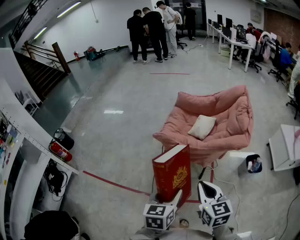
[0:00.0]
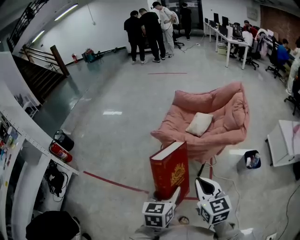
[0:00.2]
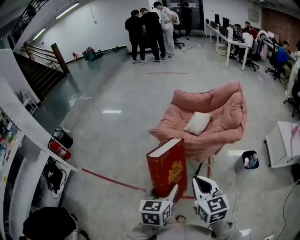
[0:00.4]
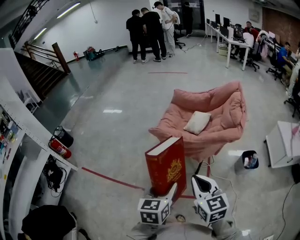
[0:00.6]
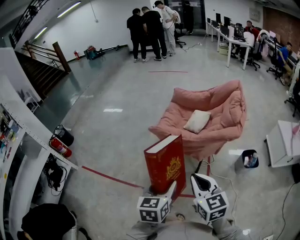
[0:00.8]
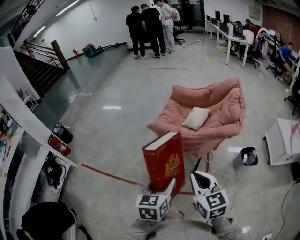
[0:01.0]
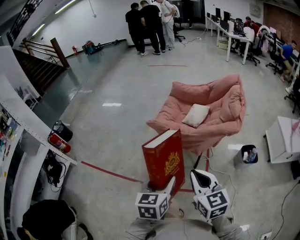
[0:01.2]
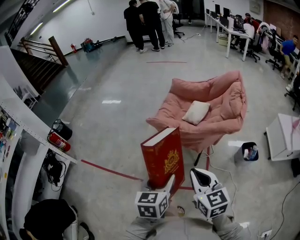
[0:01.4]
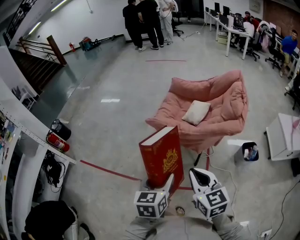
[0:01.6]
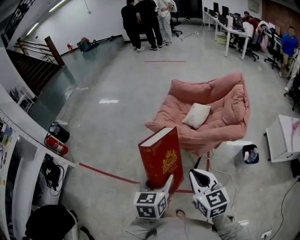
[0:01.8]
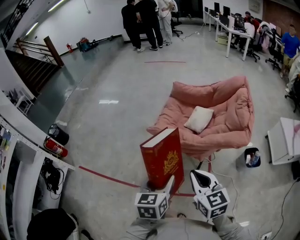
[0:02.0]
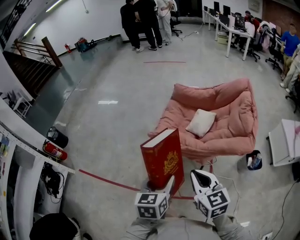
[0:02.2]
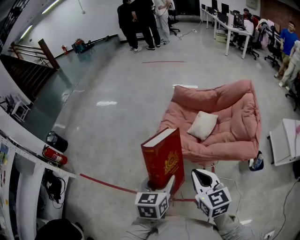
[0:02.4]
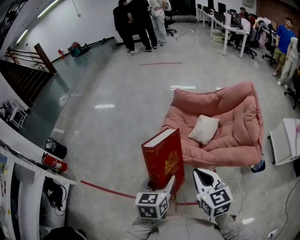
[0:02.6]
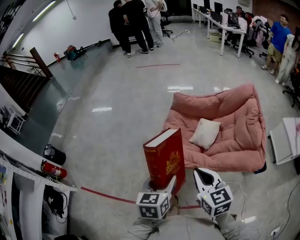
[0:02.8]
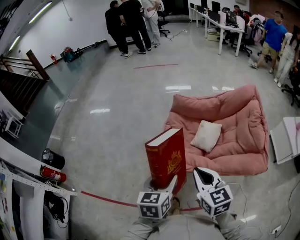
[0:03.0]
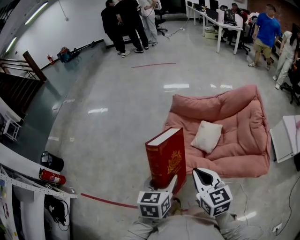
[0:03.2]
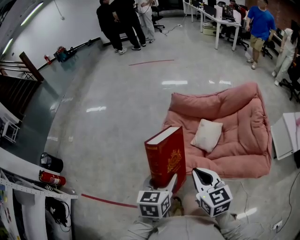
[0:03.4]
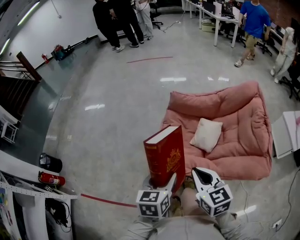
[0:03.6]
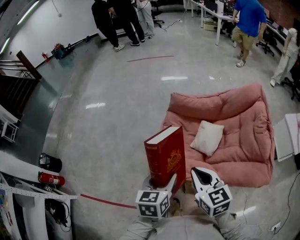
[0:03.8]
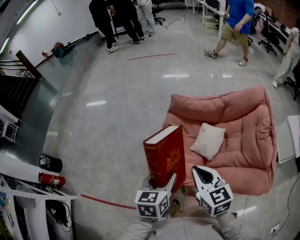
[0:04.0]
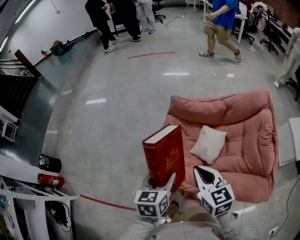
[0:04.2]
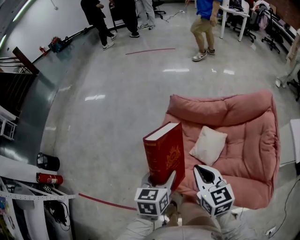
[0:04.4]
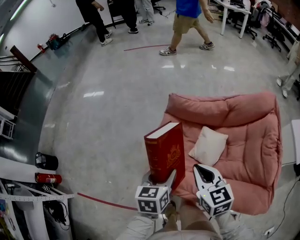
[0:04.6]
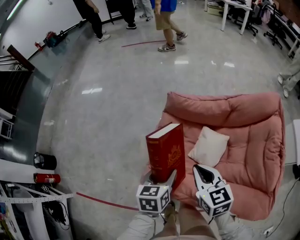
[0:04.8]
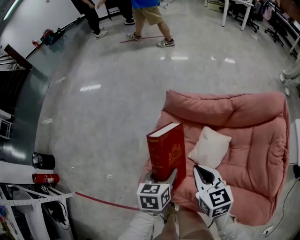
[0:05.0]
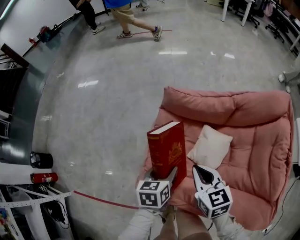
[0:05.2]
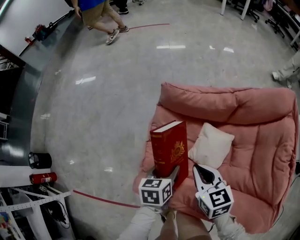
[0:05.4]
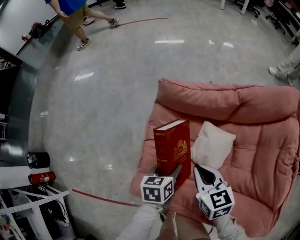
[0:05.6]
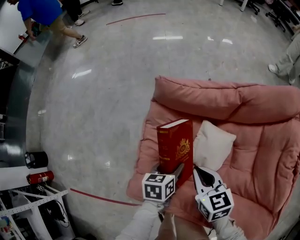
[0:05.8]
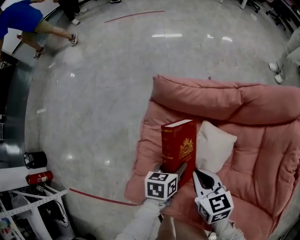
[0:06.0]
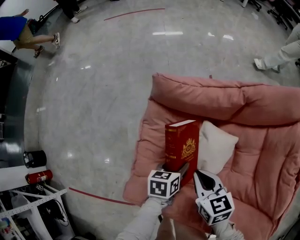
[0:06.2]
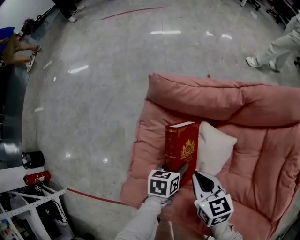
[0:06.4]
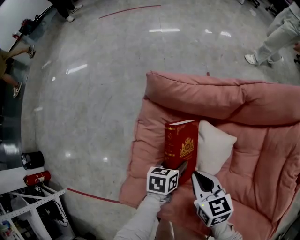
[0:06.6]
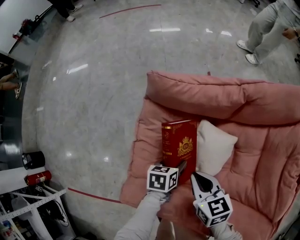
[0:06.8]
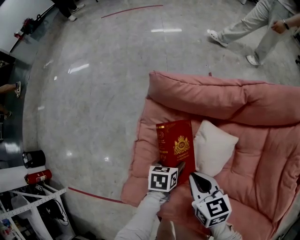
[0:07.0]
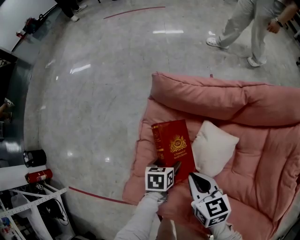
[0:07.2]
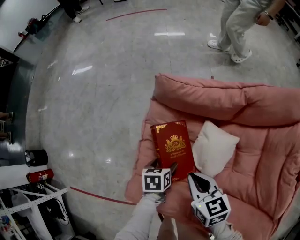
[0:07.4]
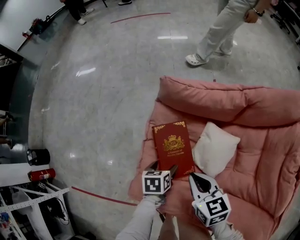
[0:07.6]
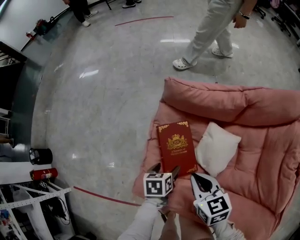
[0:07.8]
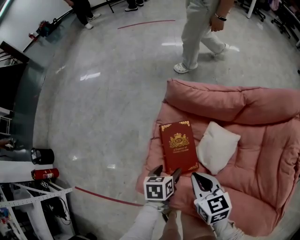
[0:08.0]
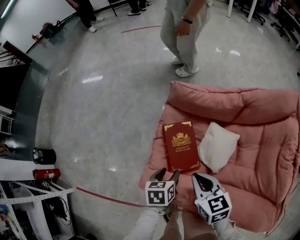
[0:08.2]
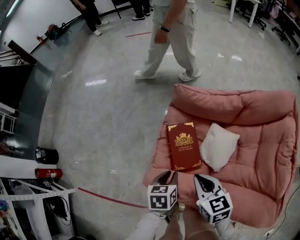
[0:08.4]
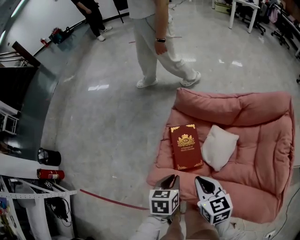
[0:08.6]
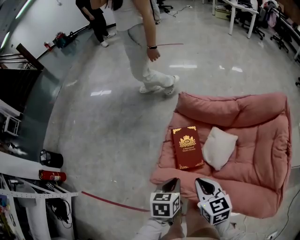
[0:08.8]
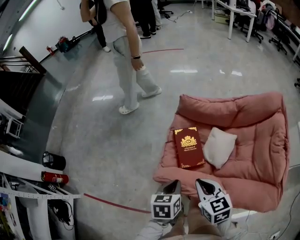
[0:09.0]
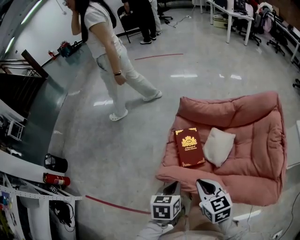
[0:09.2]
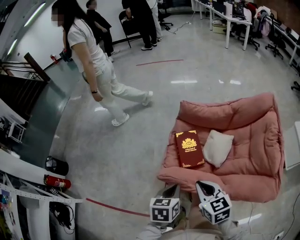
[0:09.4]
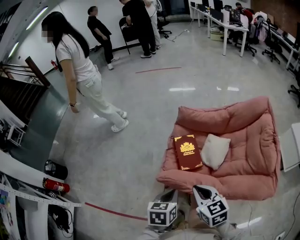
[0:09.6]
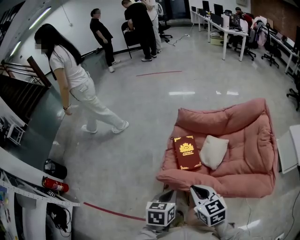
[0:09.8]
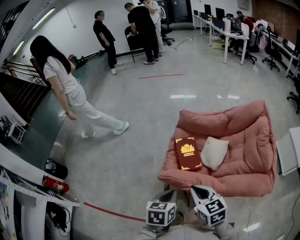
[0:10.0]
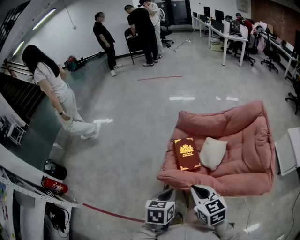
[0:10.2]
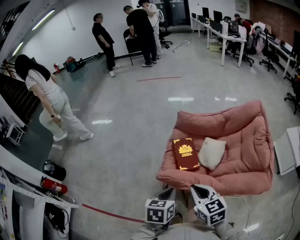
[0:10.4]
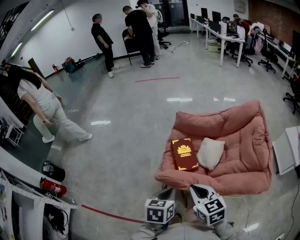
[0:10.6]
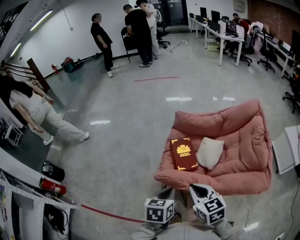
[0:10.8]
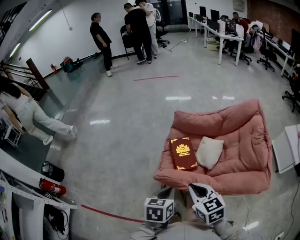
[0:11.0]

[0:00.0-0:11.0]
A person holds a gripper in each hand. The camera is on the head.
0:00.0 to 0:01.6: The grippers make only small movements.
0:01.6 to 0:03.2: Both grippers move forward, some 30 cm.
0:03.2 to 0:04.8: The left gripper goes approximately 25 cm forward and downward. Meanwhile the right gripper shifts about 20 cm forward.
0:04.8 to 0:06.2: The left gripper travels downward, to the right and forward by some 25 cm, and turns by some 20 degrees. The right gripper shifts roughly 15 cm downward.
0:06.2 to 0:07.8: The left gripper moves to the left, some 10 cm. The right gripper changes place by some 5 cm.
0:07.8 to 0:09.4: The right gripper moves backward and upward, about 20 cm; the left gripper goes approximately 30 cm upward and backward, and closes up.
0:09.4 to 0:11.0: The grippers both shift backward by approximately 5 cm.

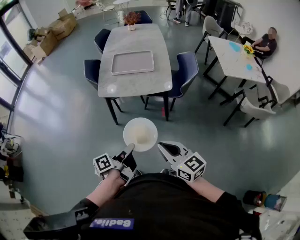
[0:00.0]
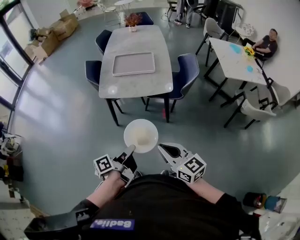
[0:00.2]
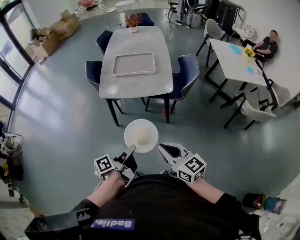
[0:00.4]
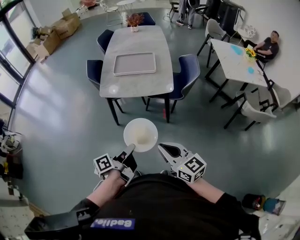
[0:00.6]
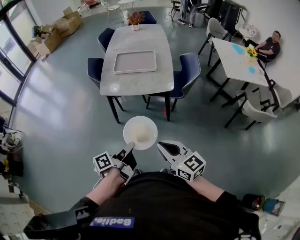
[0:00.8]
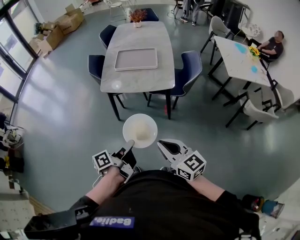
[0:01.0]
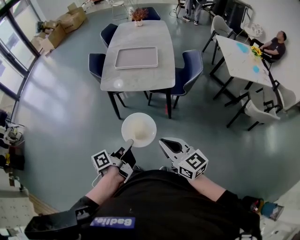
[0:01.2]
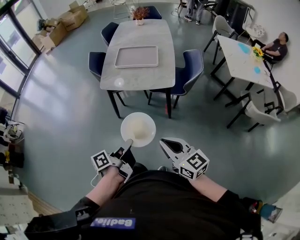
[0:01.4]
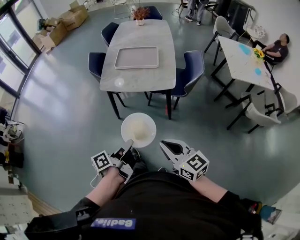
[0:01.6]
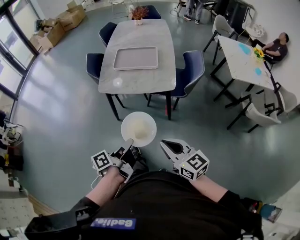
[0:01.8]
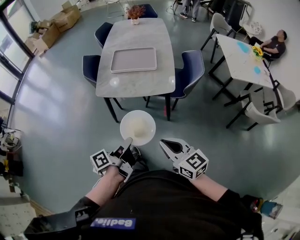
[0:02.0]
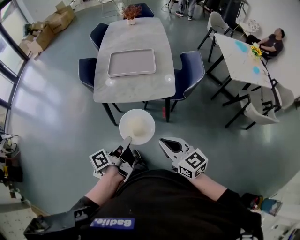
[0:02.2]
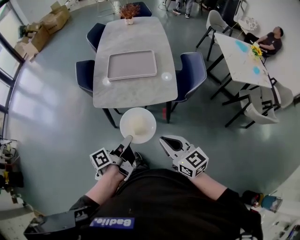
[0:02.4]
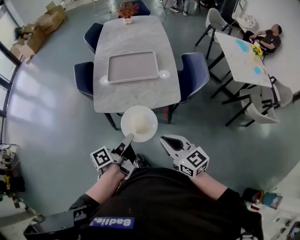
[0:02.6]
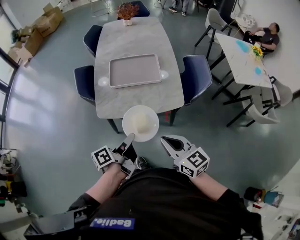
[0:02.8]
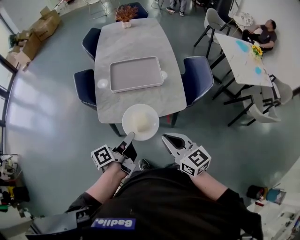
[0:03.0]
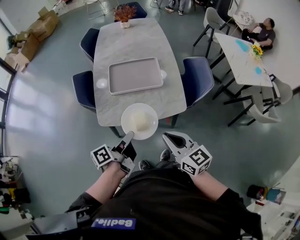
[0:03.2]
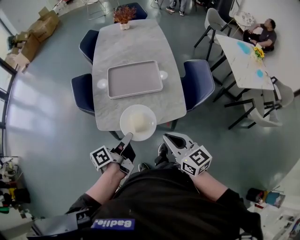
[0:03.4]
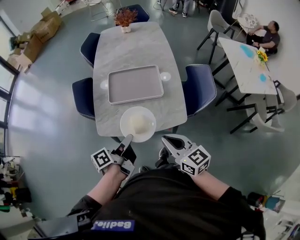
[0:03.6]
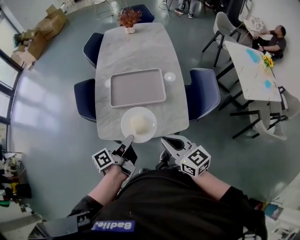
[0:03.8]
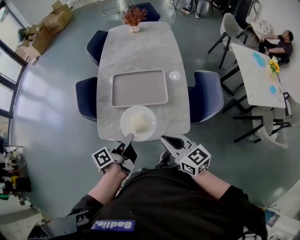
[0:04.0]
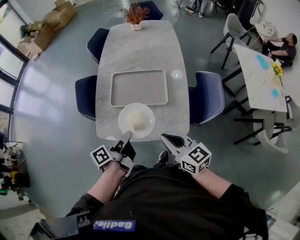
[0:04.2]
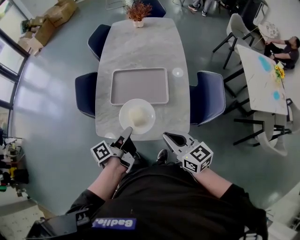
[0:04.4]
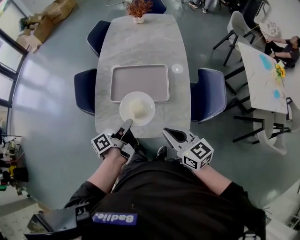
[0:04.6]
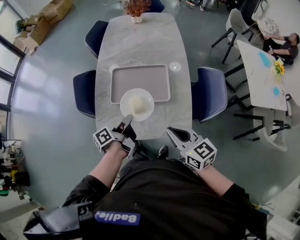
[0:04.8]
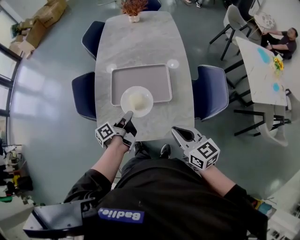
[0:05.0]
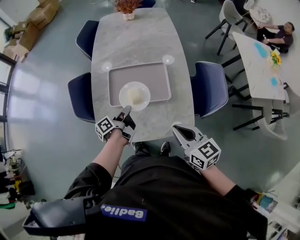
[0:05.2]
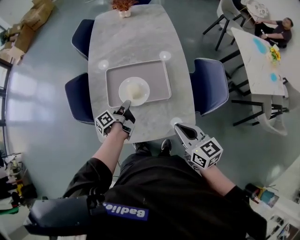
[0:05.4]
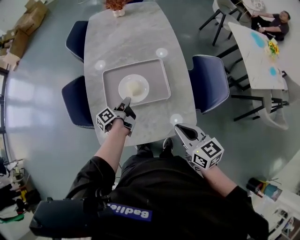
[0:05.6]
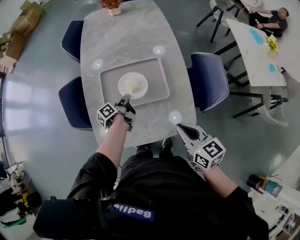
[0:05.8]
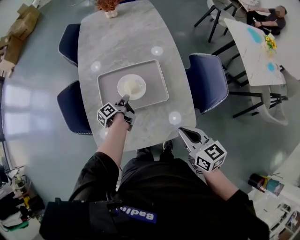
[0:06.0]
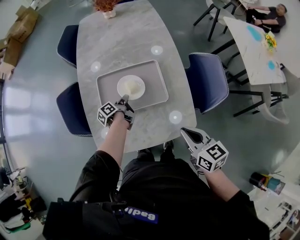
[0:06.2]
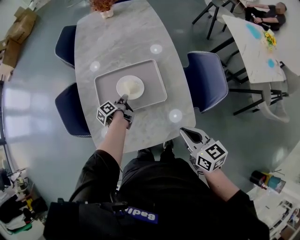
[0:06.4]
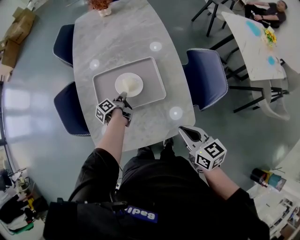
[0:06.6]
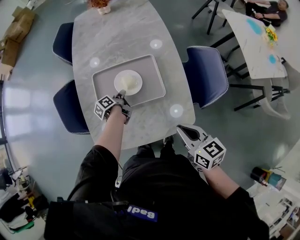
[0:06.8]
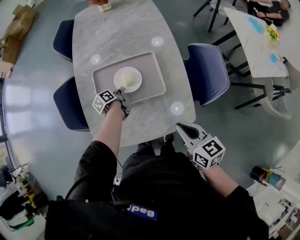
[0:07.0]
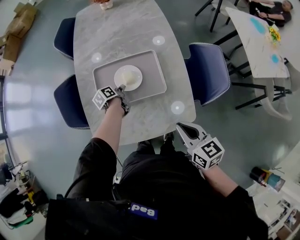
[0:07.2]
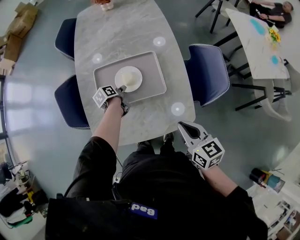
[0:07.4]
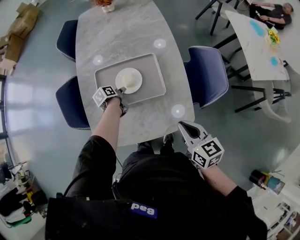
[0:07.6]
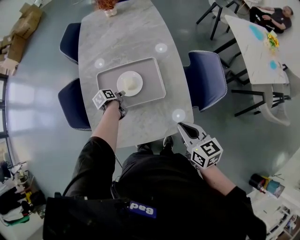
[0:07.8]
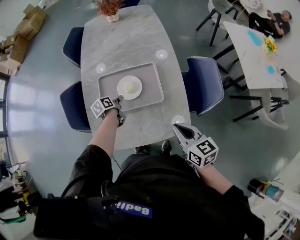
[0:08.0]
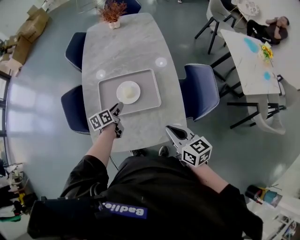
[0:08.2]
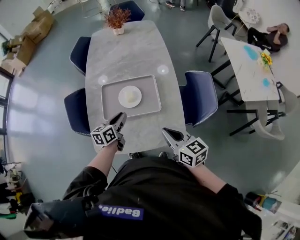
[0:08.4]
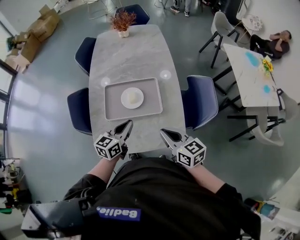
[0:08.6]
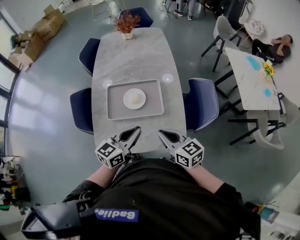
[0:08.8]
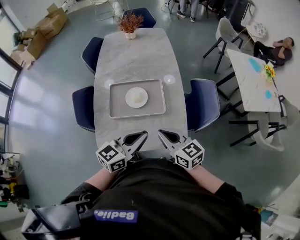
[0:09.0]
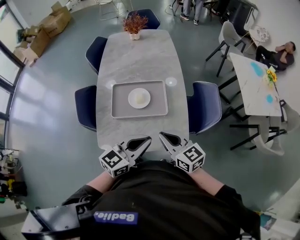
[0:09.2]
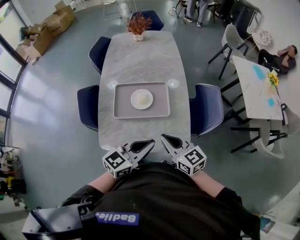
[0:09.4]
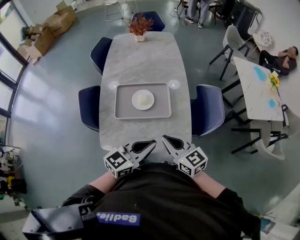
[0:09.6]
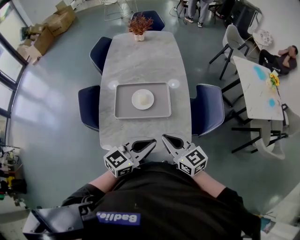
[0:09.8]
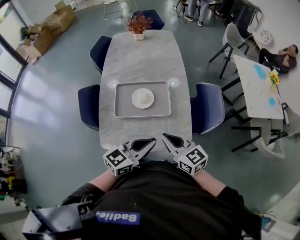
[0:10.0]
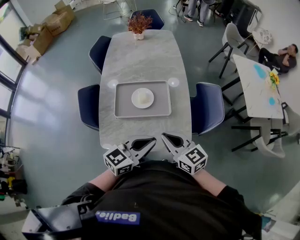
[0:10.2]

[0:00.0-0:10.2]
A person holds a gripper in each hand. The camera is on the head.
0:01.4 to 0:03.0: The right gripper shifts by approximately 30 cm.
0:03.0 to 0:04.4: The right gripper ends up roughly 20 cm from where it was.
0:04.4 to 0:05.8: The right gripper ends up about 5 cm from where it was, and turns by approximately 20 degrees.
0:07.2 to 0:08.8: The right gripper goes approximately 5 cm upward.

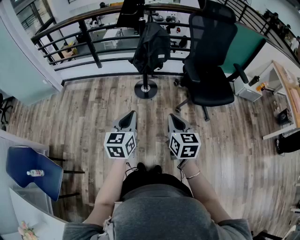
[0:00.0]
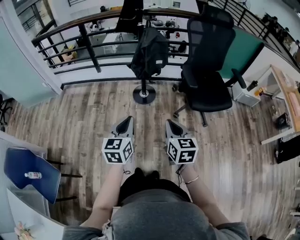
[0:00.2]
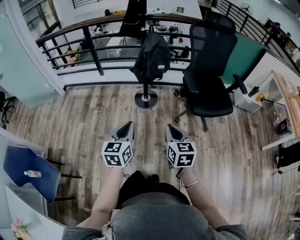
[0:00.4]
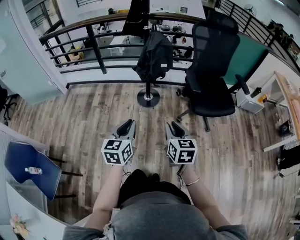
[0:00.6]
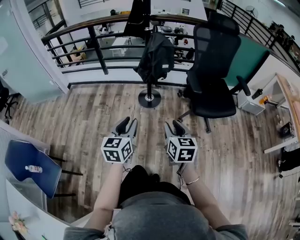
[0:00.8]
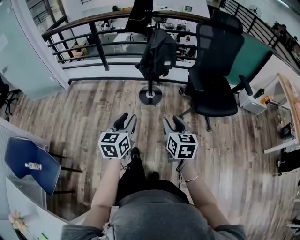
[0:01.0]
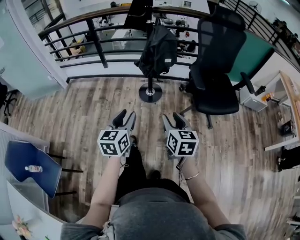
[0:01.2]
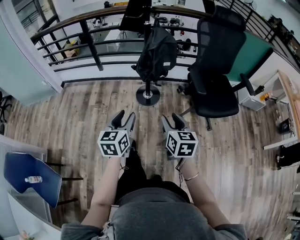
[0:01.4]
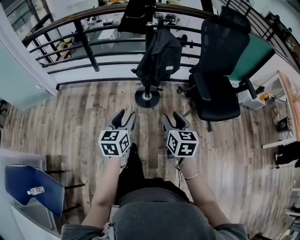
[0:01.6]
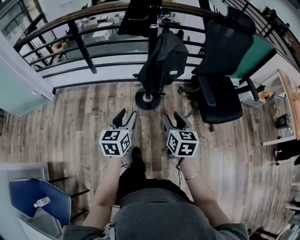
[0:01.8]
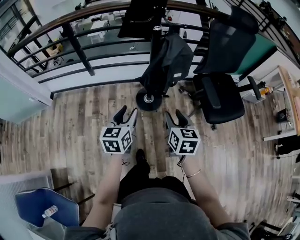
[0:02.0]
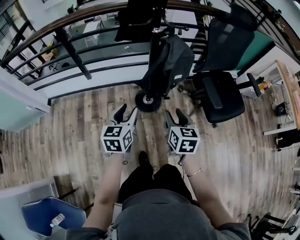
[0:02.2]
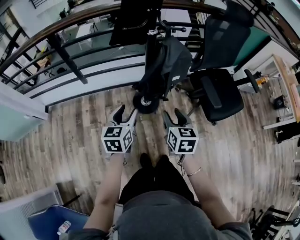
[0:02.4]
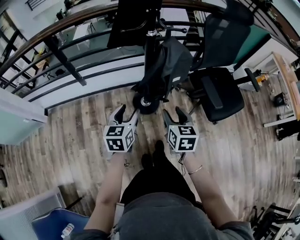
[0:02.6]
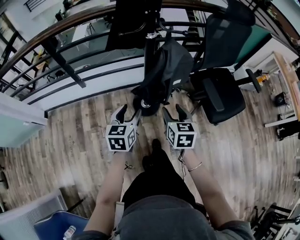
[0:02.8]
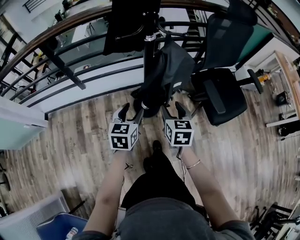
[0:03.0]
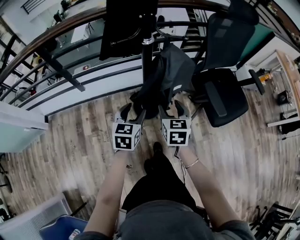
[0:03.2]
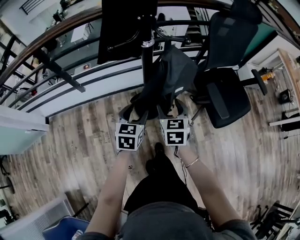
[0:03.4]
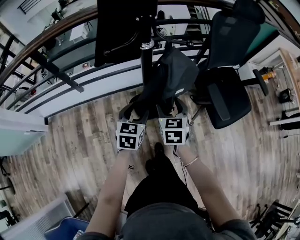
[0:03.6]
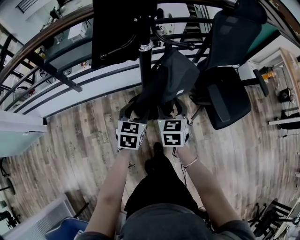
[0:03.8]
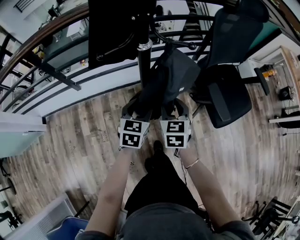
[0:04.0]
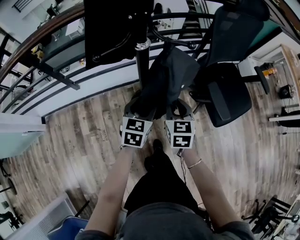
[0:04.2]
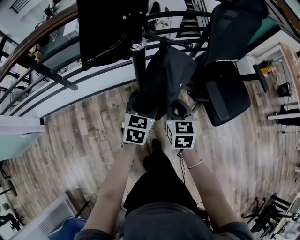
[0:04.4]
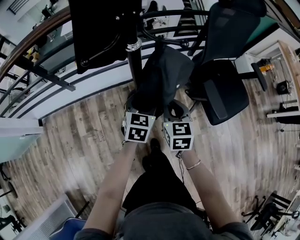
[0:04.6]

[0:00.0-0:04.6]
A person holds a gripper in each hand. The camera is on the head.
0:00.0 to 0:01.6: The right gripper travels forward by approximately 15 cm, and opens. Meanwhile the left gripper travels forward and to the left by roughly 20 cm, and opens.
0:01.6 to 0:03.0: The right gripper heads forward and to the left, covering roughly 25 cm, while the left gripper moves forward, about 25 cm.
0:03.0 to 0:04.6: The left gripper shifts some 15 cm forward and to the right; the right gripper is displaced forward by about 10 cm, and closes.
